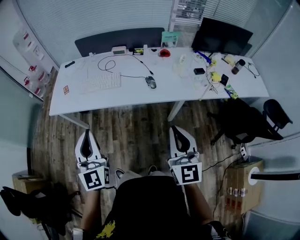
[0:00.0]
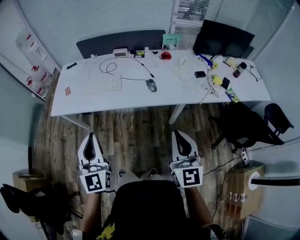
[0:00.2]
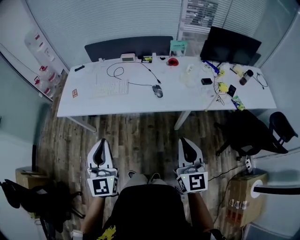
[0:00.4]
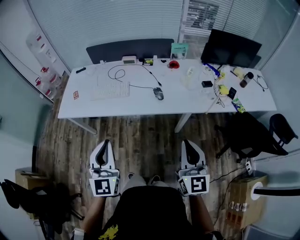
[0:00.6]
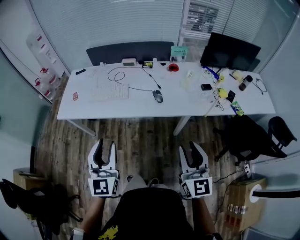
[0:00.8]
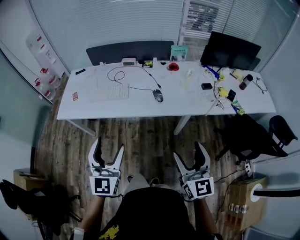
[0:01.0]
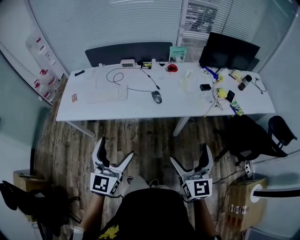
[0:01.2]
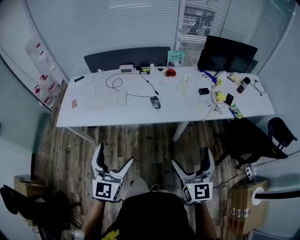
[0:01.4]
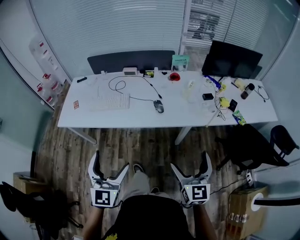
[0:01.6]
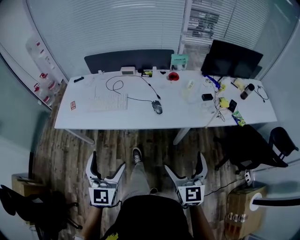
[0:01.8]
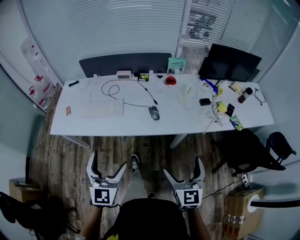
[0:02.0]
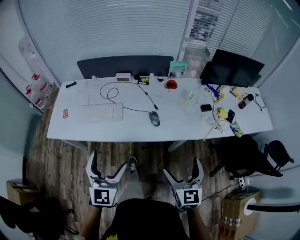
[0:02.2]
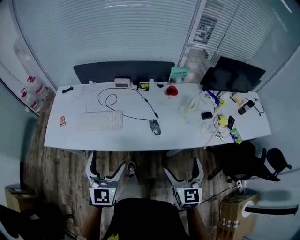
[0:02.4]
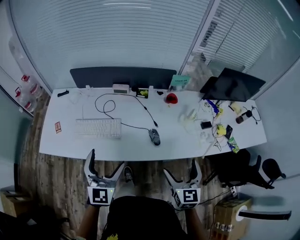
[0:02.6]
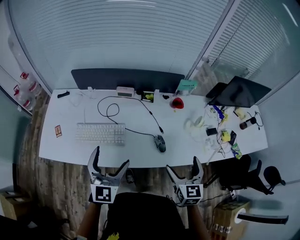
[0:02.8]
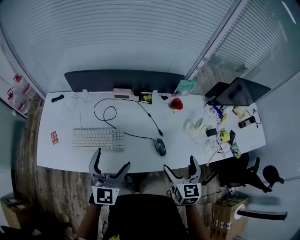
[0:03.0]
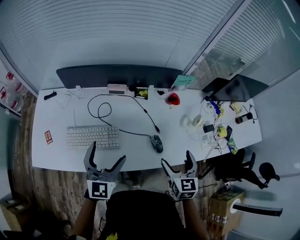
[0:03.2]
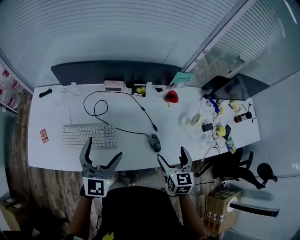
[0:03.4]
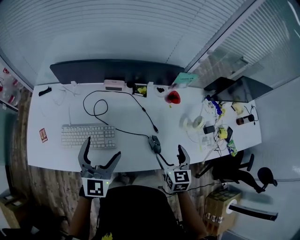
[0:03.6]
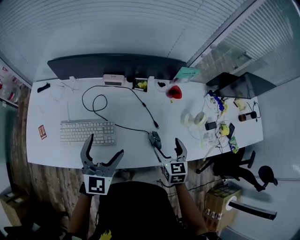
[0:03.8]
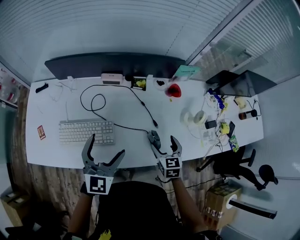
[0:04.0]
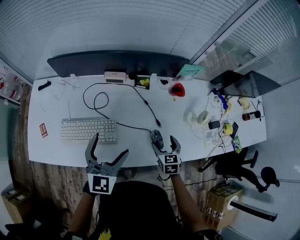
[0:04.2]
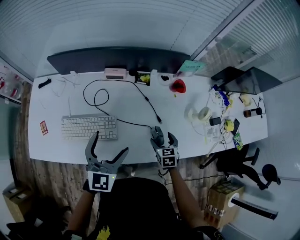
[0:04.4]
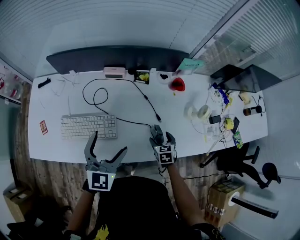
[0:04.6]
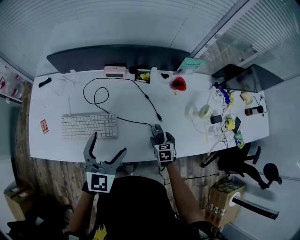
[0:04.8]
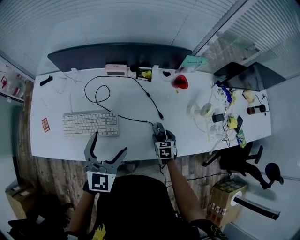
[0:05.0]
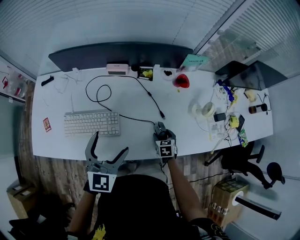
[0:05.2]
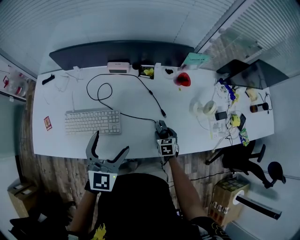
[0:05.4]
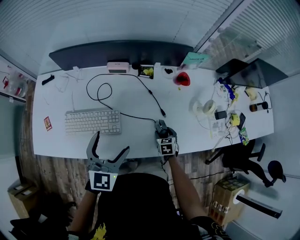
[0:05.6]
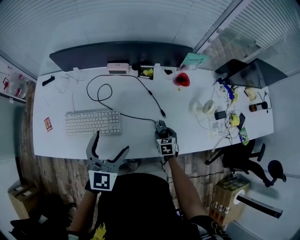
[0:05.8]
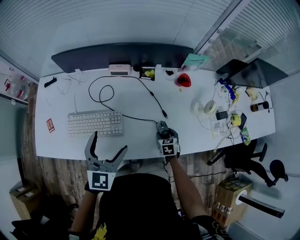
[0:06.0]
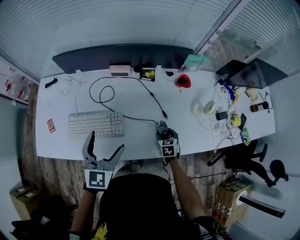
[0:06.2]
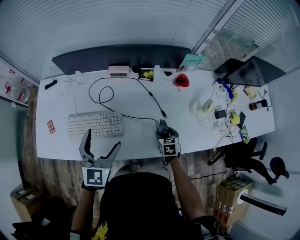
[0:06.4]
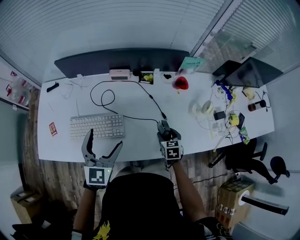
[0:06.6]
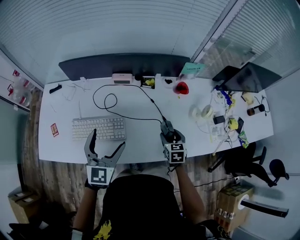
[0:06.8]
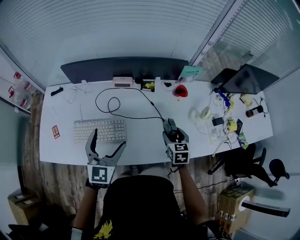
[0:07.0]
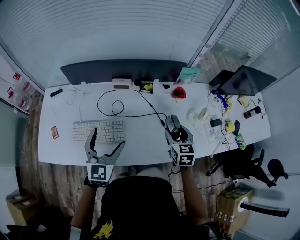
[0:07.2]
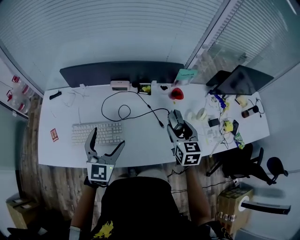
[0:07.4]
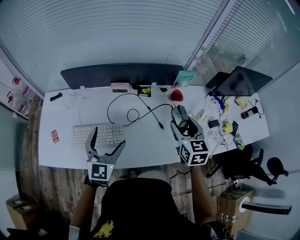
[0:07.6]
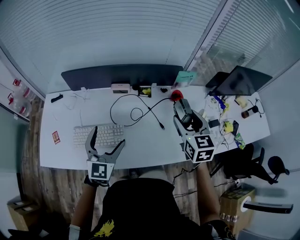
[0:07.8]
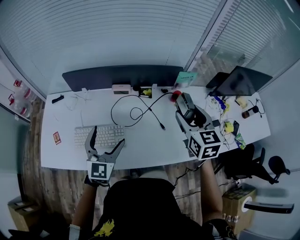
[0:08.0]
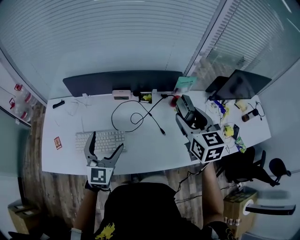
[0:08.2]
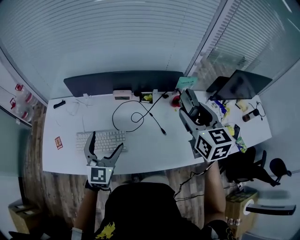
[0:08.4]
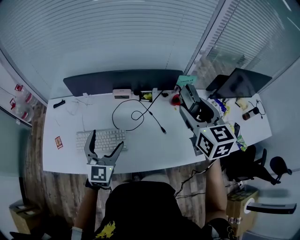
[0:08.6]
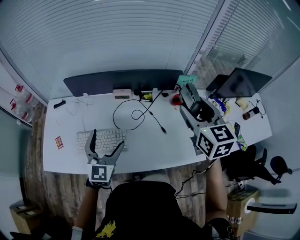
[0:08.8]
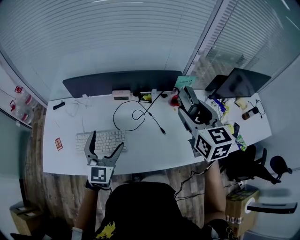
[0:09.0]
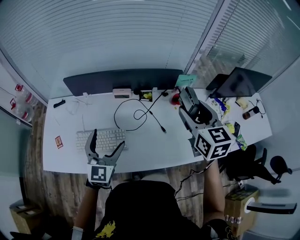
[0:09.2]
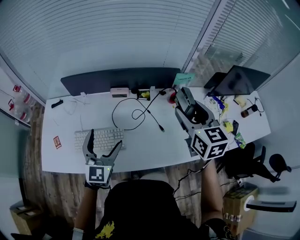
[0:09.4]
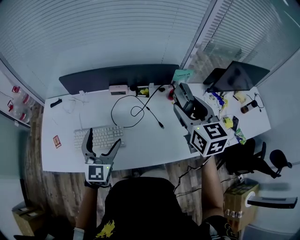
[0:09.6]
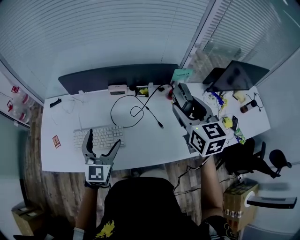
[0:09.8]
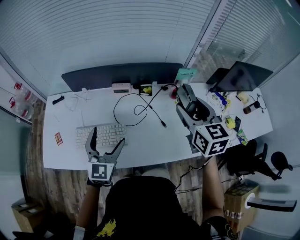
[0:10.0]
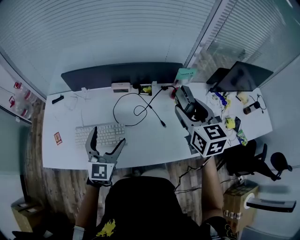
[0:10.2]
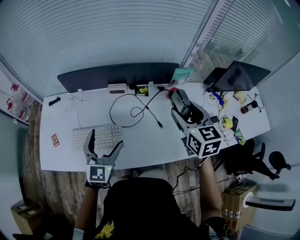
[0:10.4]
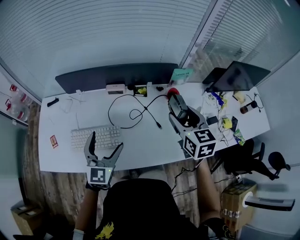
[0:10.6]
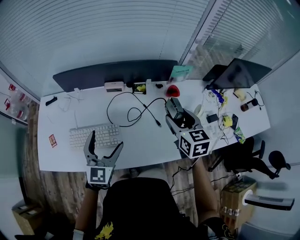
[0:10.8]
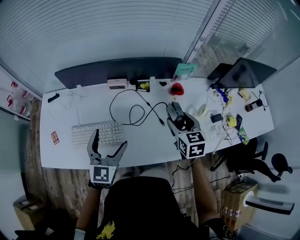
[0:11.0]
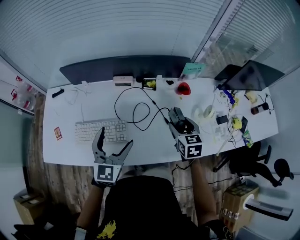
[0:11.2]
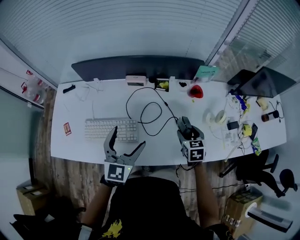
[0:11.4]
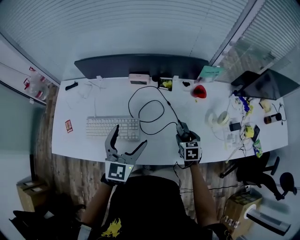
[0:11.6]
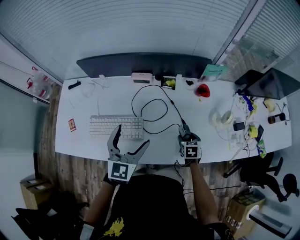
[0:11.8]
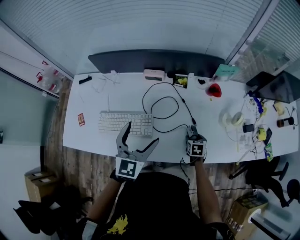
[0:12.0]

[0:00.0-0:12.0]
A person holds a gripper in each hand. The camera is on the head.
0:00.0 to 0:01.6: The right gripper heads to the right and downward, covering roughly 10 cm, and opens its fingers. Meanwhile the left gripper shifts about 10 cm to the right, and opens its fingers.
0:01.6 to 0:03.0: Both grippers are carried forward, some 40 cm.
0:03.0 to 0:04.4: The left gripper moves forward and downward, about 10 cm, while the right gripper shifts about 25 cm downward and forward, and changes its angle by some 20 degrees.
0:04.4 to 0:06.0: The right gripper travels downward by roughly 10 cm.
0:06.0 to 0:07.6: The left gripper moves approximately 5 cm. Meanwhile the right gripper travels upward by about 35 cm, and tilts its fingers some 30 degrees upward.
0:07.6 to 0:09.0: The right gripper heads upward, covering approximately 15 cm.
0:09.0 to 0:10.4: The right gripper travels downward by about 5 cm.
0:10.4 to 0:12.0: The left gripper moves about 5 cm, while the right gripper shifts approximately 40 cm downward, and angles its fingers downward, by roughly 40 degrees.

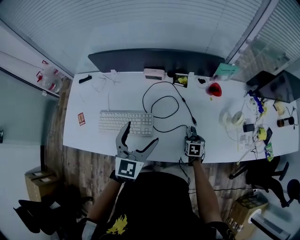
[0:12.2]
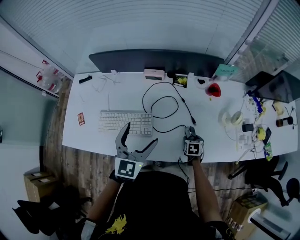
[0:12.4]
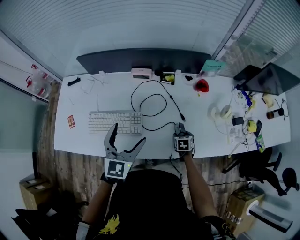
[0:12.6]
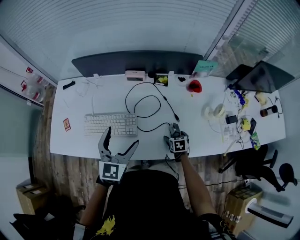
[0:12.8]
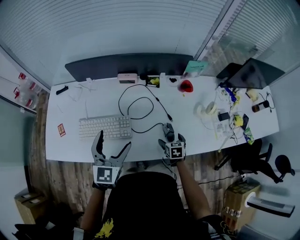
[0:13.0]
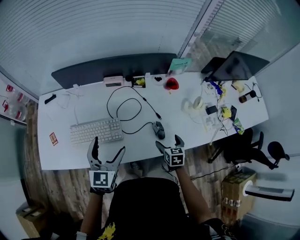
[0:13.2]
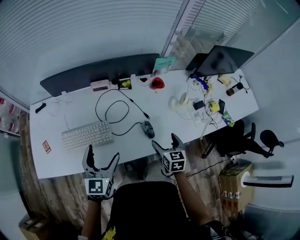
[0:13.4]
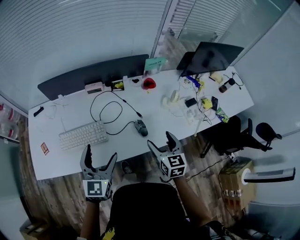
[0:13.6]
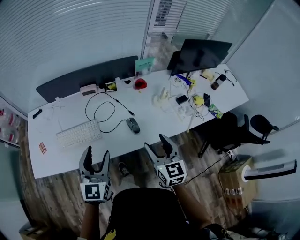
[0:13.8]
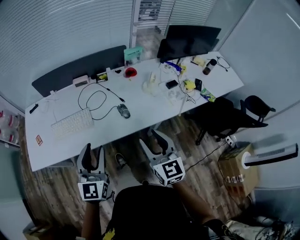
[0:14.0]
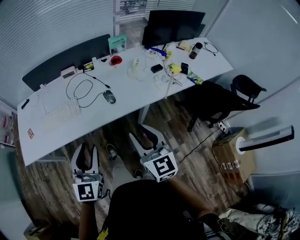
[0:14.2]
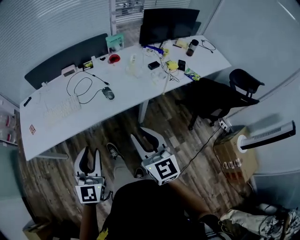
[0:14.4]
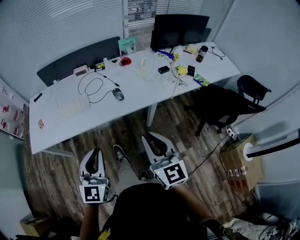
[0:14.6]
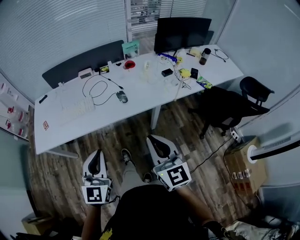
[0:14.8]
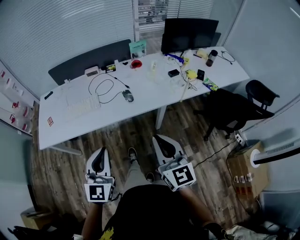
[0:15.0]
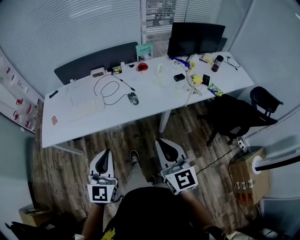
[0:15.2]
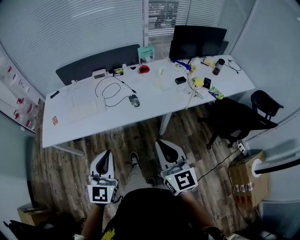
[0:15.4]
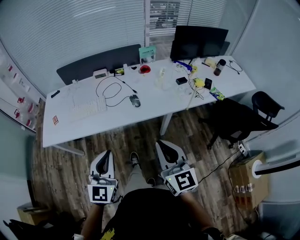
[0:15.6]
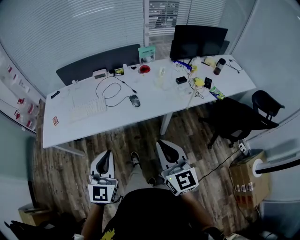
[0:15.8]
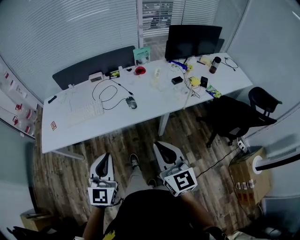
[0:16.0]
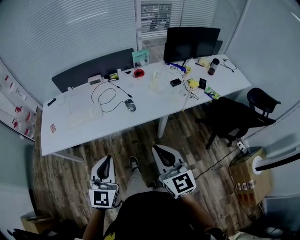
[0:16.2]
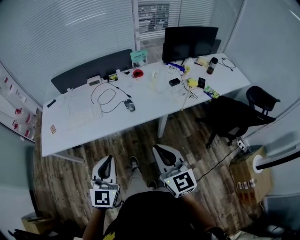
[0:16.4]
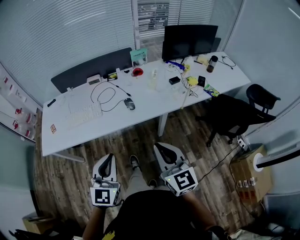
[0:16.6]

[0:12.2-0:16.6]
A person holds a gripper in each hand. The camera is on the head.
0:12.2 to 0:13.6: The right gripper heads upward and backward, covering some 35 cm, and angles its fingers upward, by approximately 40 degrees, while the left gripper travels backward by roughly 10 cm.
0:13.6 to 0:15.2: The left gripper heads backward and to the right, covering about 40 cm, and closes its fingers. Meanwhile the right gripper heads backward, covering roughly 40 cm, rotates approximately 30 degrees, and closes.
0:15.2 to 0:16.6: The grippers stay close to where they were, moving slightly.

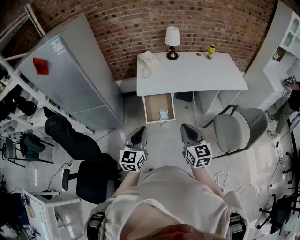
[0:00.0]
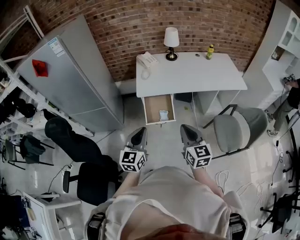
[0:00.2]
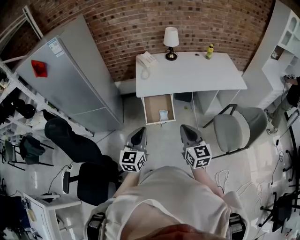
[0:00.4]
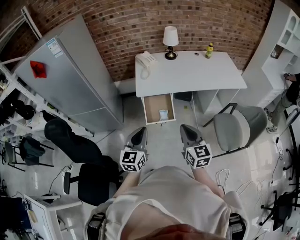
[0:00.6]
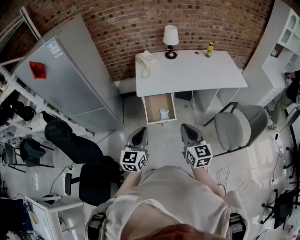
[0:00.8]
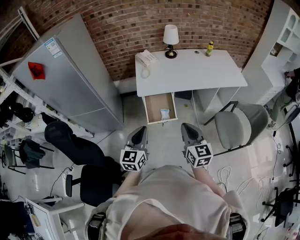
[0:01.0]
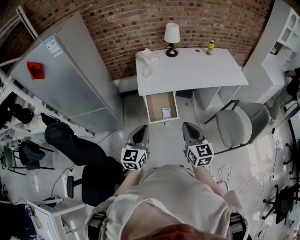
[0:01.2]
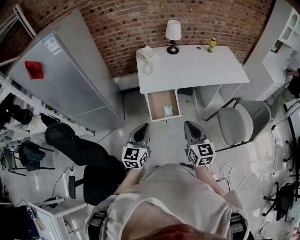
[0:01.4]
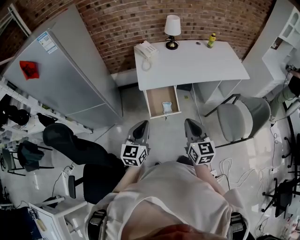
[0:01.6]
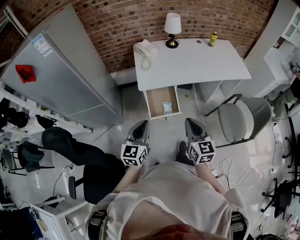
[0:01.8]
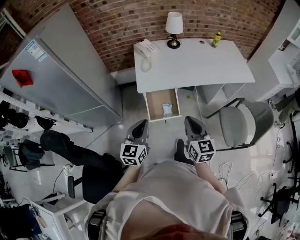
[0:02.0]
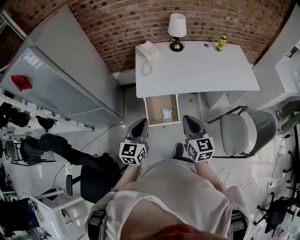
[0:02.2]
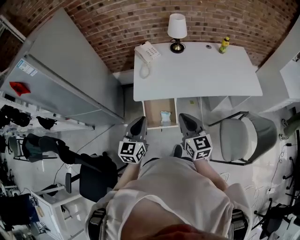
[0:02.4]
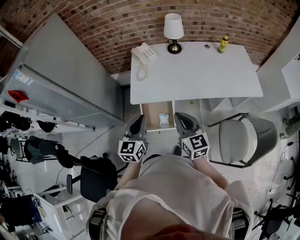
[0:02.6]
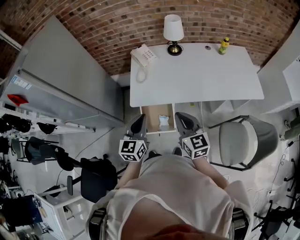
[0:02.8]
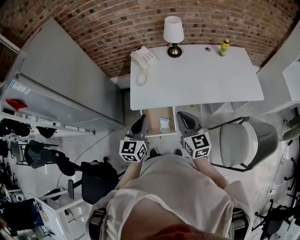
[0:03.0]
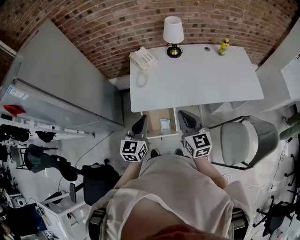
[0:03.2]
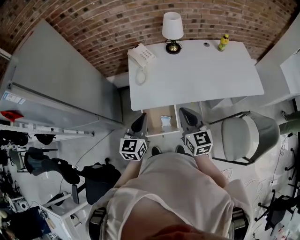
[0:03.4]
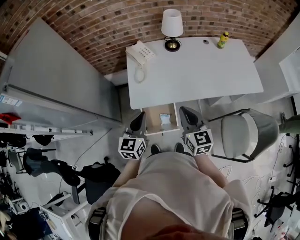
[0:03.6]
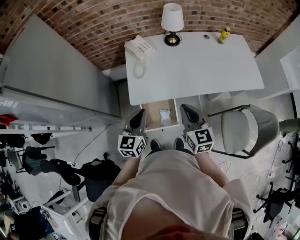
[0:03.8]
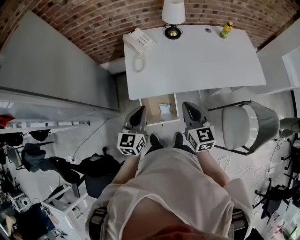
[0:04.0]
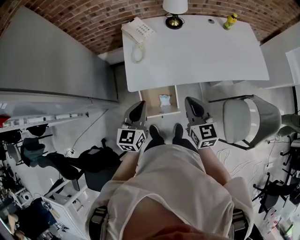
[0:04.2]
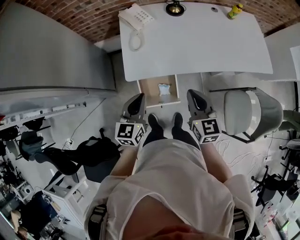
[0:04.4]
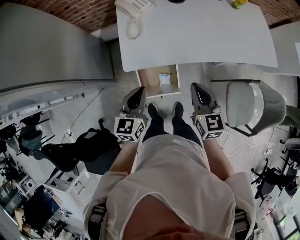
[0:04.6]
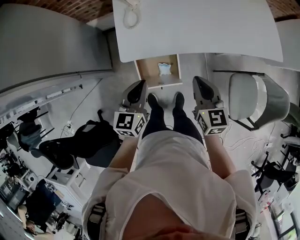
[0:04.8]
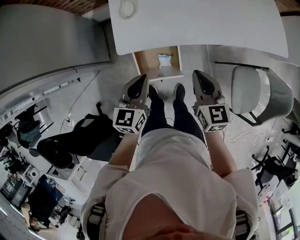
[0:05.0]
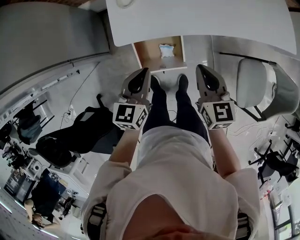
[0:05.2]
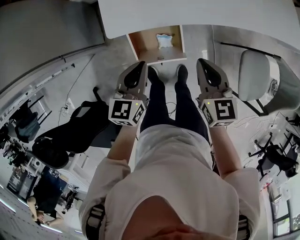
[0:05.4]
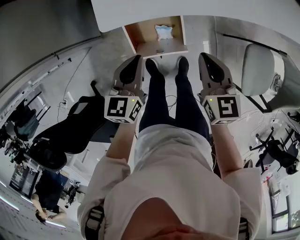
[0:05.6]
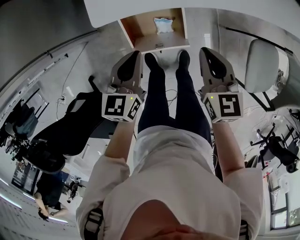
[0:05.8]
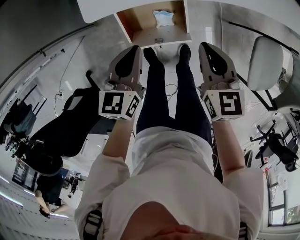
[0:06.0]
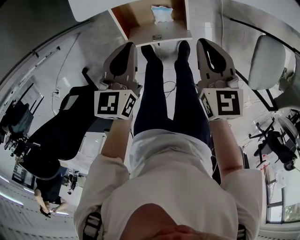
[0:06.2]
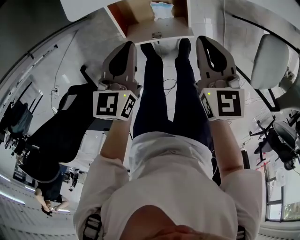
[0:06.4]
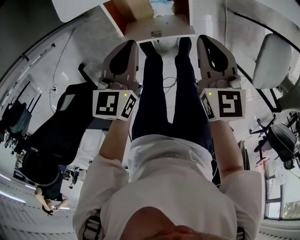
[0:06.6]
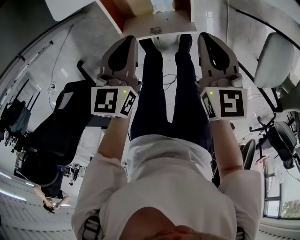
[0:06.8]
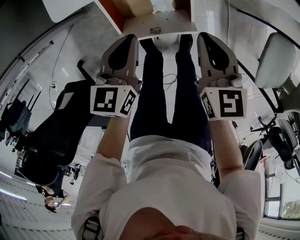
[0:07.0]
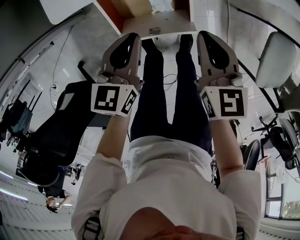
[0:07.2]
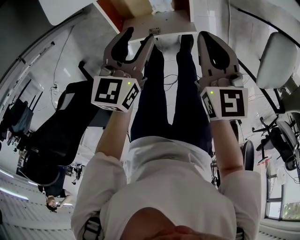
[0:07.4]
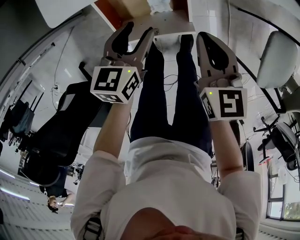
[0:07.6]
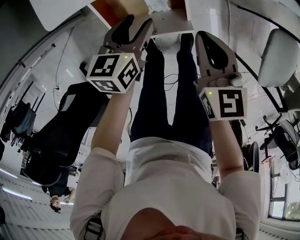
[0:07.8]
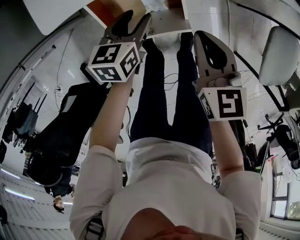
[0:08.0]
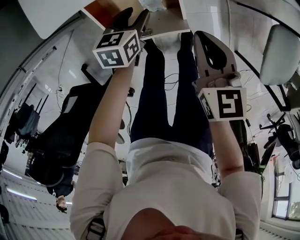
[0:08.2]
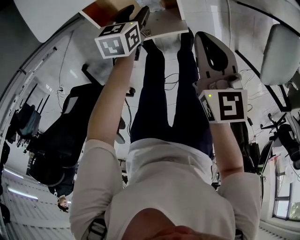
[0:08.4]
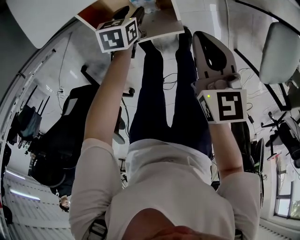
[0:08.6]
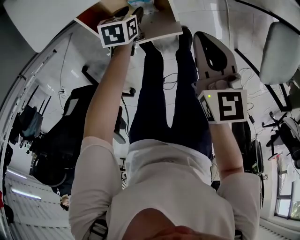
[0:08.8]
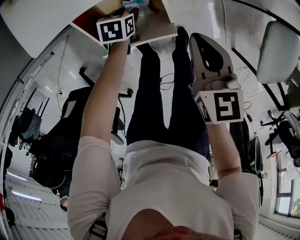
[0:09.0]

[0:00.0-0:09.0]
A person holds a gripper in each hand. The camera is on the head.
0:00.0 to 0:01.6: The right gripper goes approximately 5 cm to the left. The left gripper heads to the left and forward, covering about 10 cm.
0:01.6 to 0:03.0: The left gripper shifts approximately 30 cm forward and to the right, while the right gripper travels forward by approximately 25 cm.
0:03.0 to 0:04.4: Both grippers move downward, roughly 10 cm.
0:04.4 to 0:06.0: Both grippers move downward, roughly 20 cm.
0:06.0 to 0:07.6: Both grippers move downward, approximately 10 cm. The left gripper opens its fingers.
0:07.6 to 0:09.0: The right gripper heads to the right, covering about 5 cm. Meanwhile the left gripper shifts roughly 20 cm downward, and swivels some 30 degrees.
